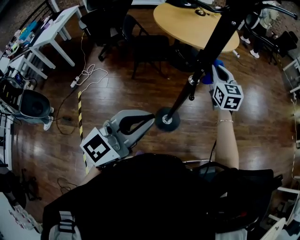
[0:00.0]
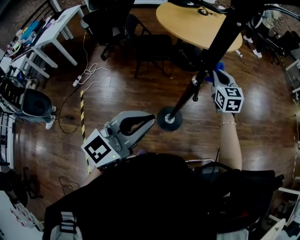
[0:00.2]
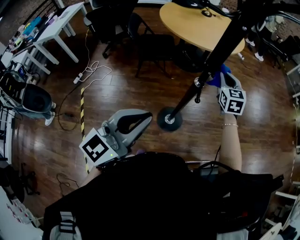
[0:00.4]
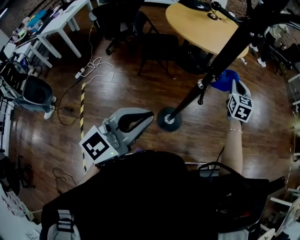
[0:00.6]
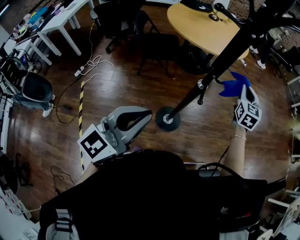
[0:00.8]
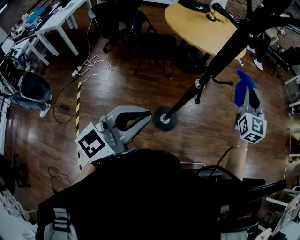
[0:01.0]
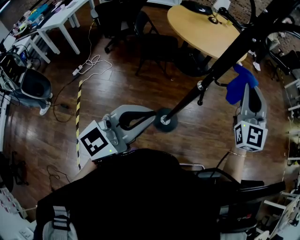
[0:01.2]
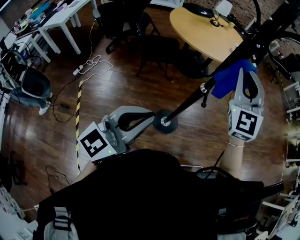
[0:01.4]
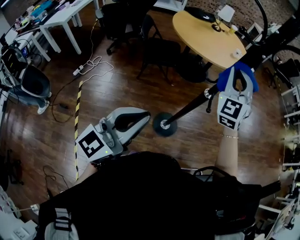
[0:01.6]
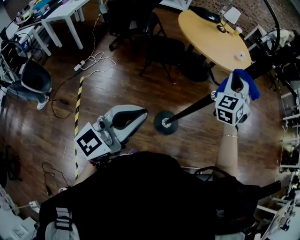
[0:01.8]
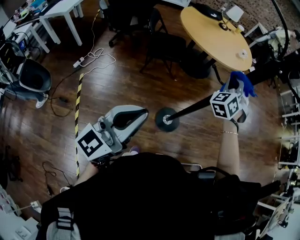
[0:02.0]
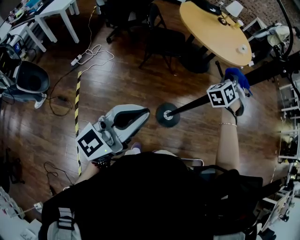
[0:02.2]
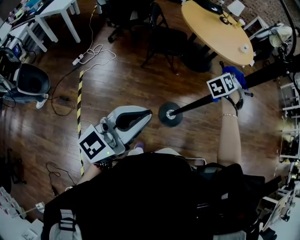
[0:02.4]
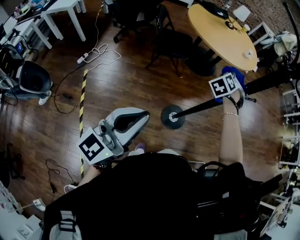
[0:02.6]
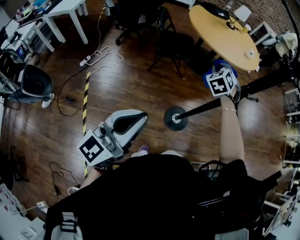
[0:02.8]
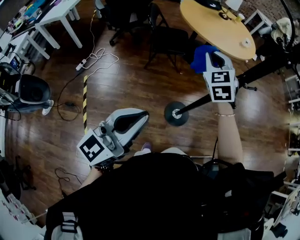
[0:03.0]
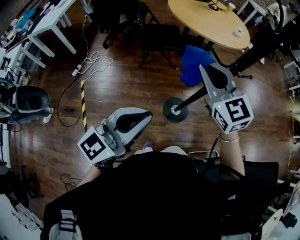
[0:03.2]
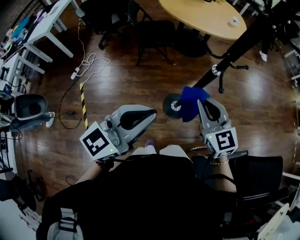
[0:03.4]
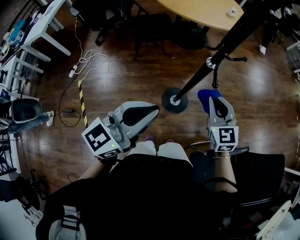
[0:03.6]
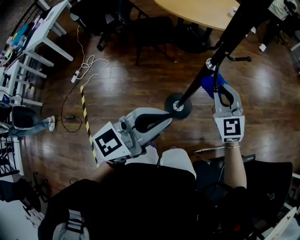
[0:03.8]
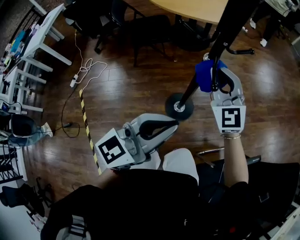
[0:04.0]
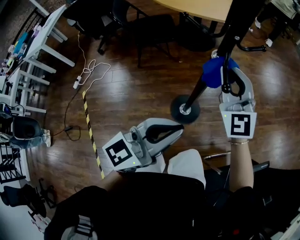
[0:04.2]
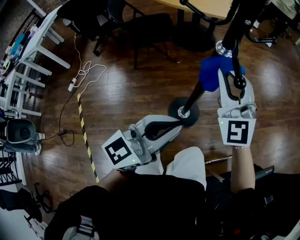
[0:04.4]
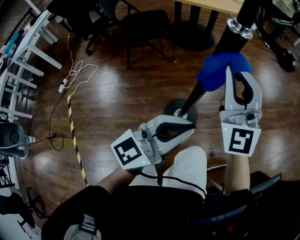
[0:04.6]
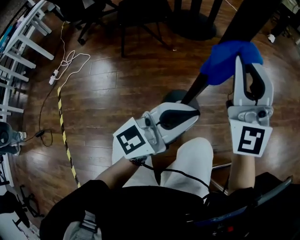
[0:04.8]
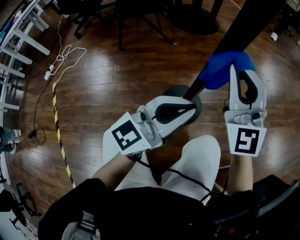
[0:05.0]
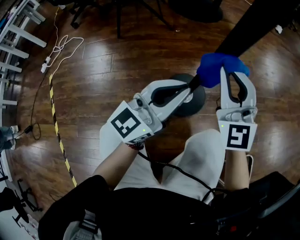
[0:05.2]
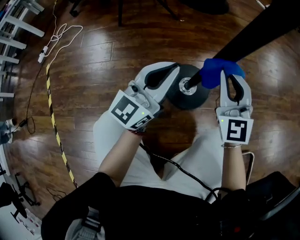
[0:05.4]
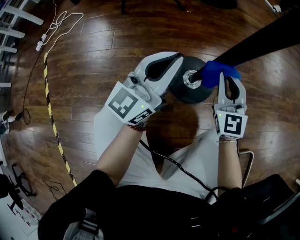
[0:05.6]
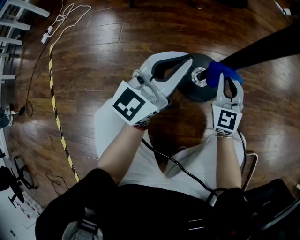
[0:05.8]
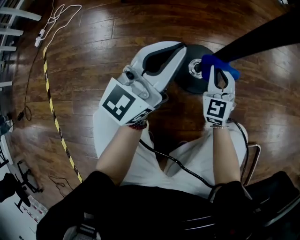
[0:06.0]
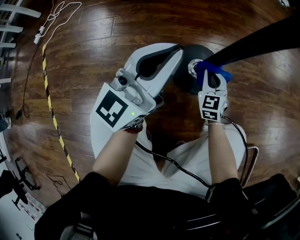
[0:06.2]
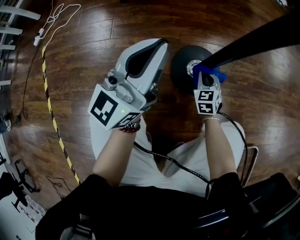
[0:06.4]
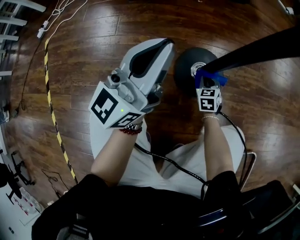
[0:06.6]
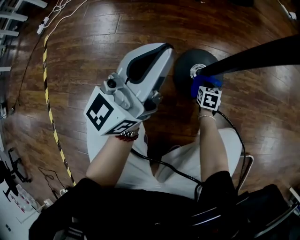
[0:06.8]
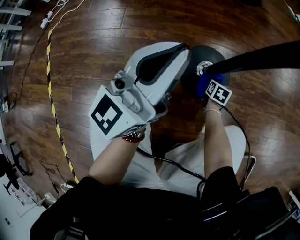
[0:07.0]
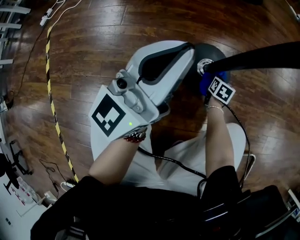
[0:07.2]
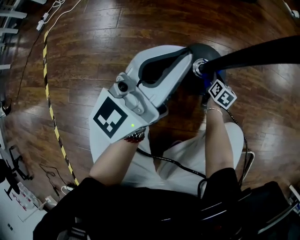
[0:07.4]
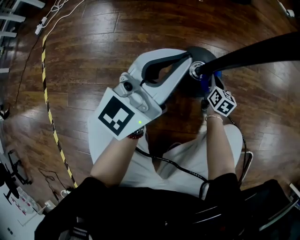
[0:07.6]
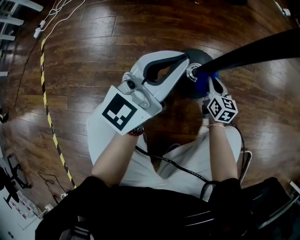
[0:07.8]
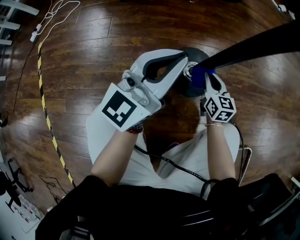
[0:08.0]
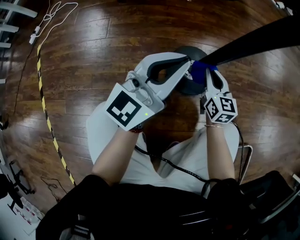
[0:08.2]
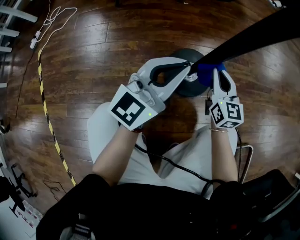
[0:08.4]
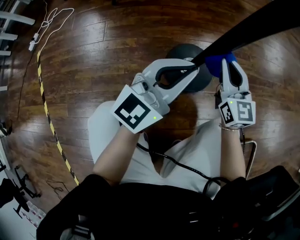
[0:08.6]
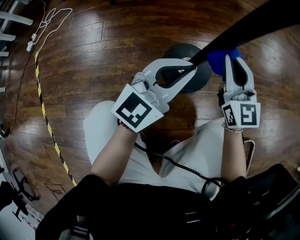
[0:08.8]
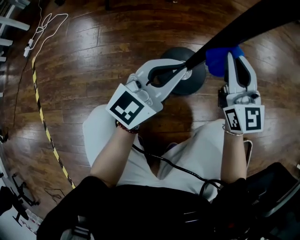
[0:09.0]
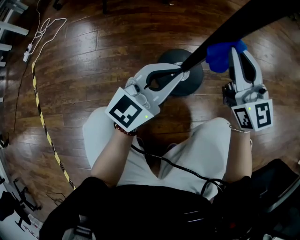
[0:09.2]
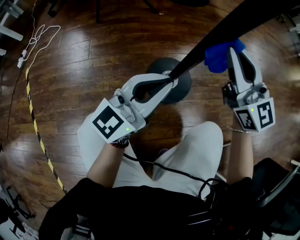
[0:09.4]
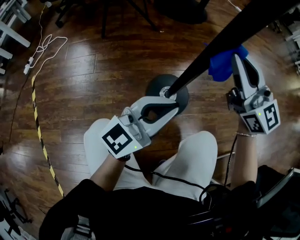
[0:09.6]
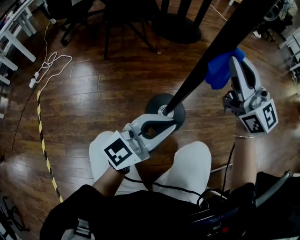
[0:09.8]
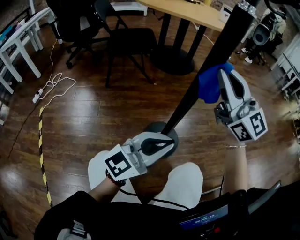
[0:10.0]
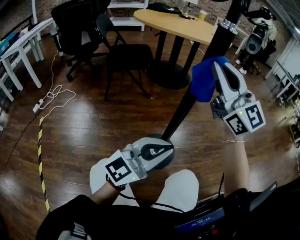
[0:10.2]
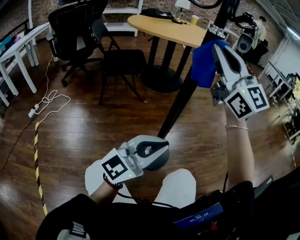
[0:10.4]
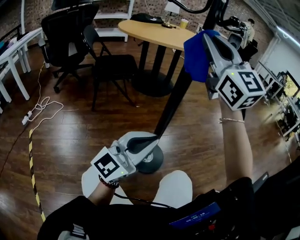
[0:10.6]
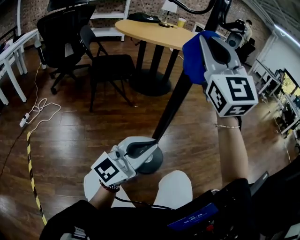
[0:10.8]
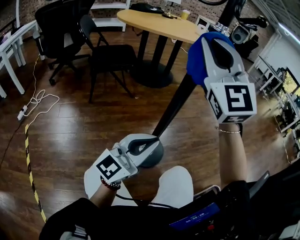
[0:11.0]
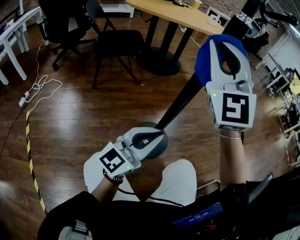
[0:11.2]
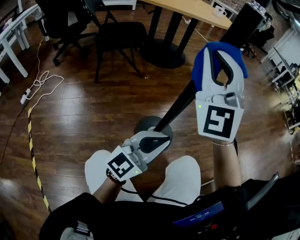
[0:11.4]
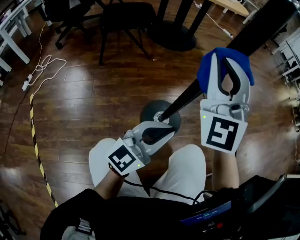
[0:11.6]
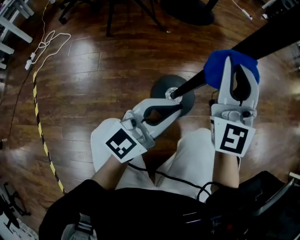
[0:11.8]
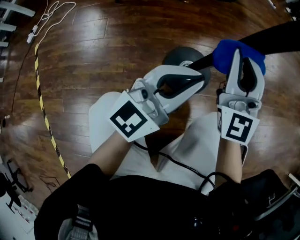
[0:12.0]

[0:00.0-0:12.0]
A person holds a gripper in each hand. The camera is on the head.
0.0 to 1.6 s: The right gripper moves upward, backward and to the left, roughly 15 cm, and swivels some 40 degrees. The left gripper is displaced to the left by some 10 cm.
1.6 to 3.0 s: The left gripper moves to the left, roughly 10 cm. The right gripper shifts approximately 20 cm to the left and downward, and swivels about 30 degrees.
3.0 to 4.4 s: The right gripper is displaced to the right and downward by approximately 25 cm, and changes its angle by about 20 degrees, while the left gripper shifts about 35 cm downward, to the right and forward, and rotates approximately 20 degrees.
4.4 to 6.0 s: The right gripper moves downward, about 60 cm, and changes its angle by approximately 30 degrees, while the left gripper travels downward by roughly 40 cm, and changes its angle by roughly 20 degrees.
6.0 to 7.6 s: The right gripper heads downward, covering approximately 15 cm, and rolls clockwise, seen from behind, by some 50 degrees.
7.6 to 9.0 s: The left gripper moves to the right, roughly 5 cm, while the right gripper moves upward, roughly 35 cm, and angles its fingers upward, by some 40 degrees.
9.0 to 10.4 s: The right gripper moves upward, approximately 50 cm, and swivels approximately 30 degrees. Meanwhile the left gripper heads upward and backward, covering some 25 cm, and swivels approximately 20 degrees.
10.4 to 12.0 s: The left gripper heads downward and forward, covering roughly 20 cm. Meanwhile the right gripper is displaced downward by about 40 cm, and swivels approximately 20 degrees.

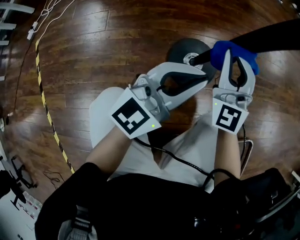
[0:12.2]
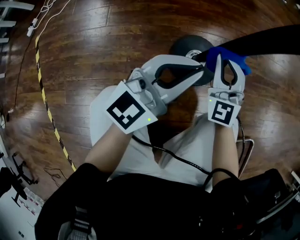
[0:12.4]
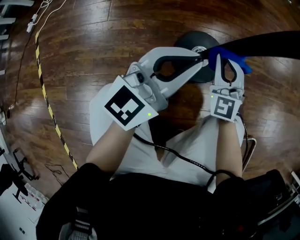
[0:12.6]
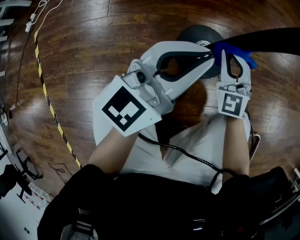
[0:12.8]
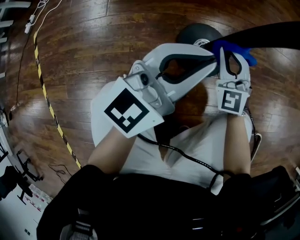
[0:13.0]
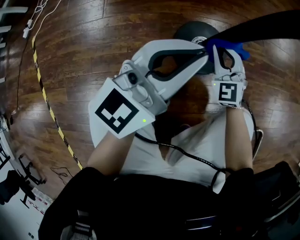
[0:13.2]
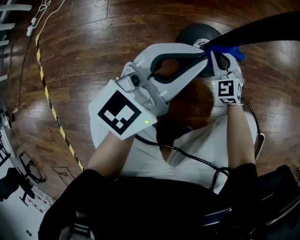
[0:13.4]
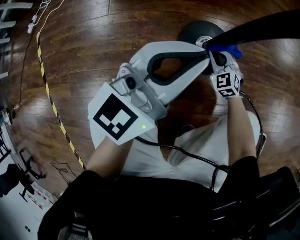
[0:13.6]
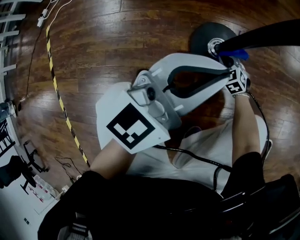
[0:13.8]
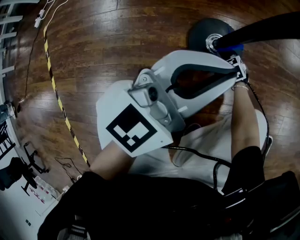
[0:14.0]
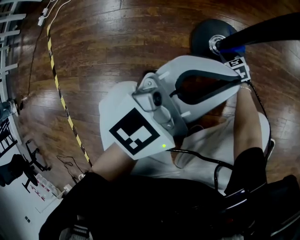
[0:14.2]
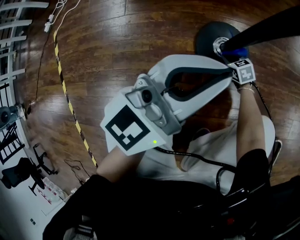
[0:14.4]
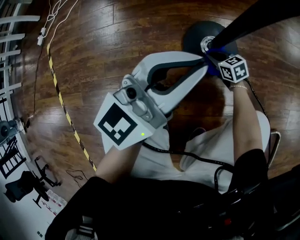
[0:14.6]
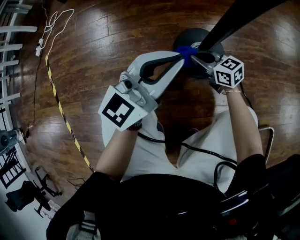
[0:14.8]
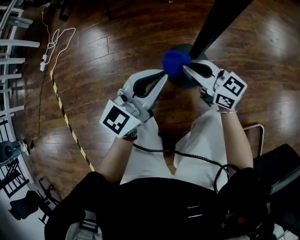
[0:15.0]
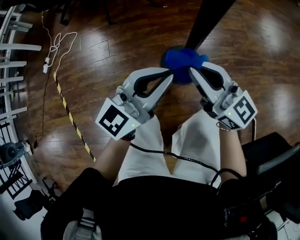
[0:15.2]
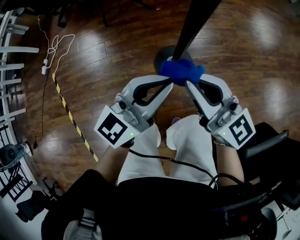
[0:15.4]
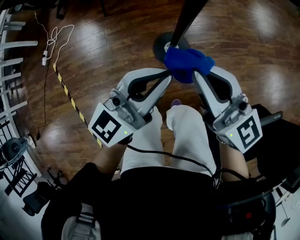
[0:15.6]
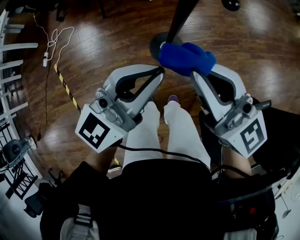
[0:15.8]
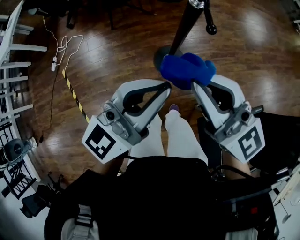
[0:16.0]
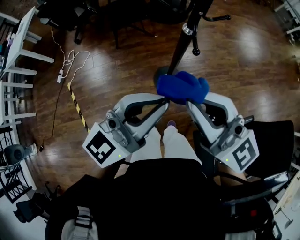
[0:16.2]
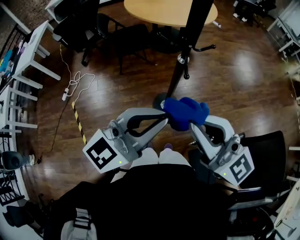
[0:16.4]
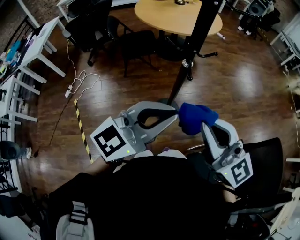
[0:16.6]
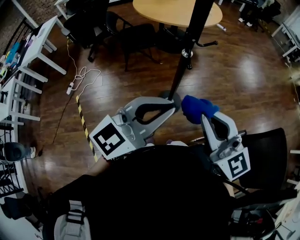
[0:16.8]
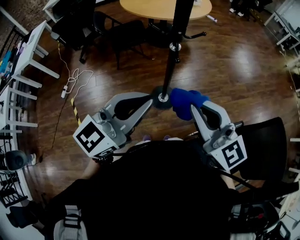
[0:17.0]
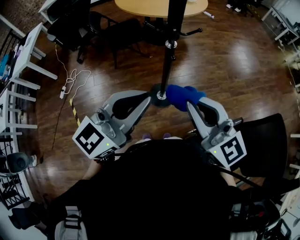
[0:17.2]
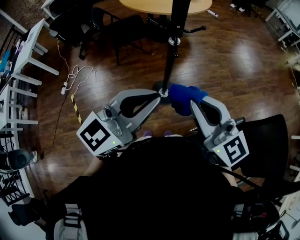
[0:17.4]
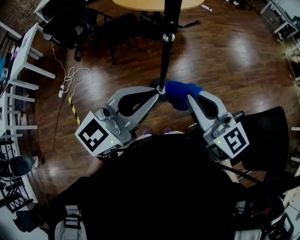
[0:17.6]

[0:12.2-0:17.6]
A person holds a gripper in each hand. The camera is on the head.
12.2 to 13.6 s: The right gripper moves downward, roughly 30 cm, and angles its fingers downward, by about 40 degrees.
13.6 to 15.0 s: The left gripper travels upward by roughly 5 cm. Meanwhile the right gripper goes some 30 cm upward, and angles its fingers upward, by about 30 degrees.
15.0 to 16.2 s: Both grippers move upward, some 50 cm. The right gripper changes its angle by roughly 30 degrees.
16.2 to 17.6 s: The right gripper heads to the right, upward and backward, covering roughly 10 cm; the left gripper goes approximately 15 cm upward and backward.

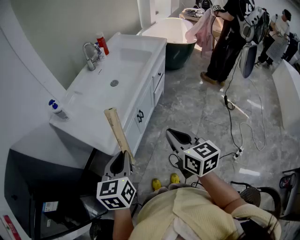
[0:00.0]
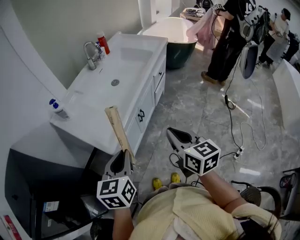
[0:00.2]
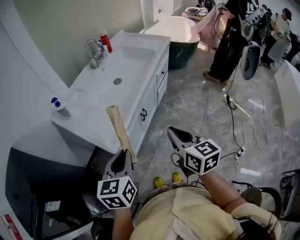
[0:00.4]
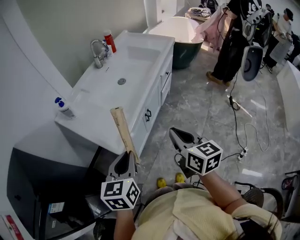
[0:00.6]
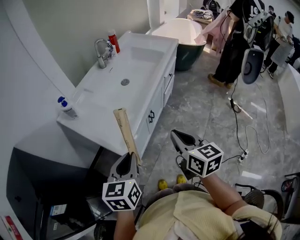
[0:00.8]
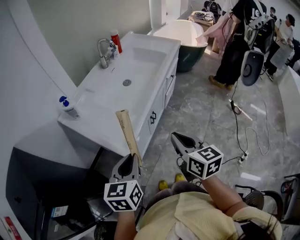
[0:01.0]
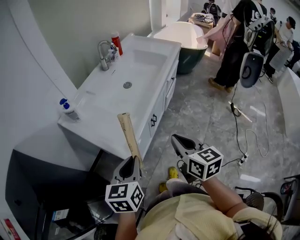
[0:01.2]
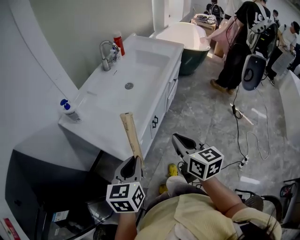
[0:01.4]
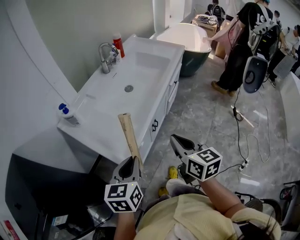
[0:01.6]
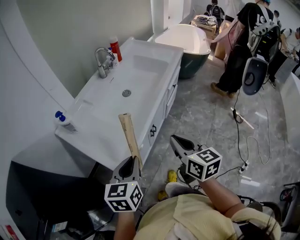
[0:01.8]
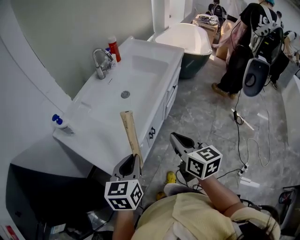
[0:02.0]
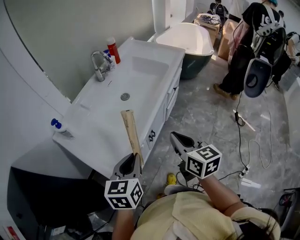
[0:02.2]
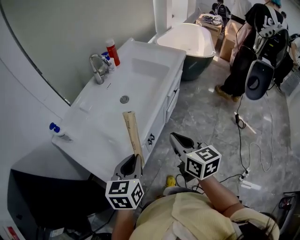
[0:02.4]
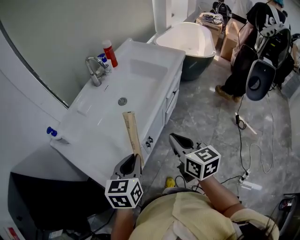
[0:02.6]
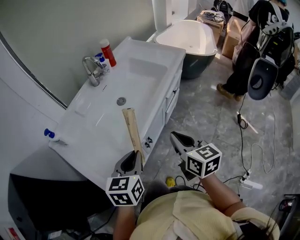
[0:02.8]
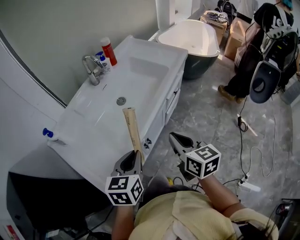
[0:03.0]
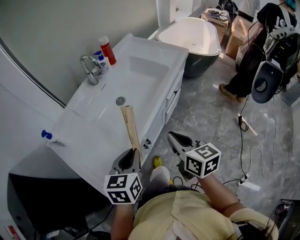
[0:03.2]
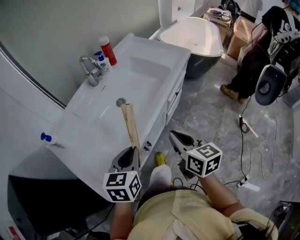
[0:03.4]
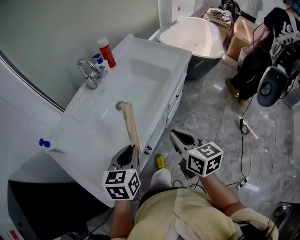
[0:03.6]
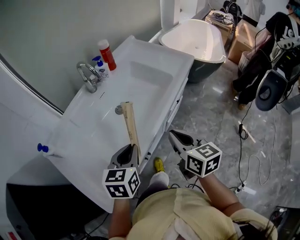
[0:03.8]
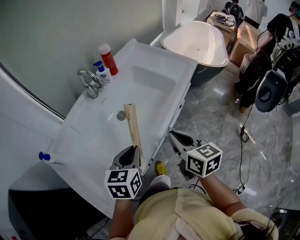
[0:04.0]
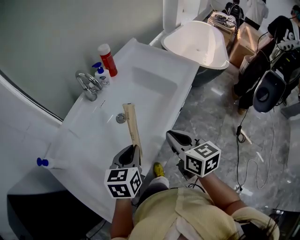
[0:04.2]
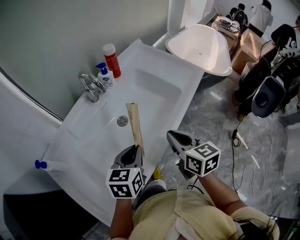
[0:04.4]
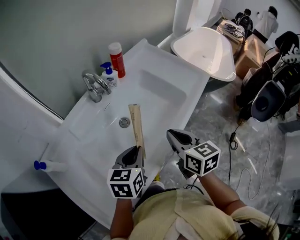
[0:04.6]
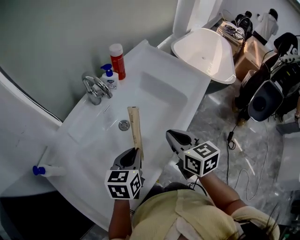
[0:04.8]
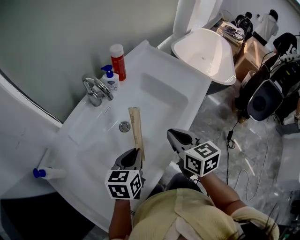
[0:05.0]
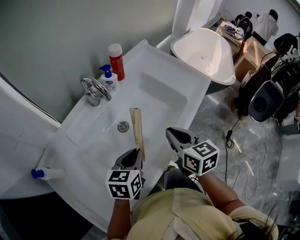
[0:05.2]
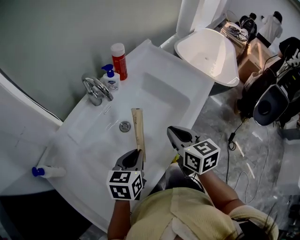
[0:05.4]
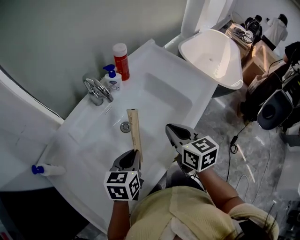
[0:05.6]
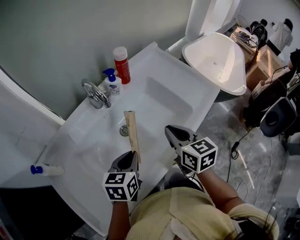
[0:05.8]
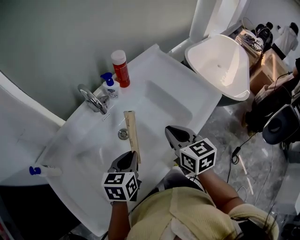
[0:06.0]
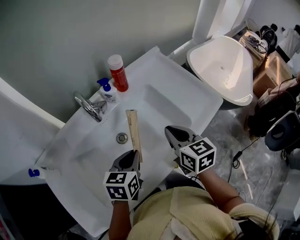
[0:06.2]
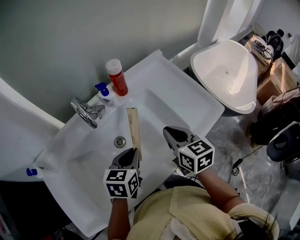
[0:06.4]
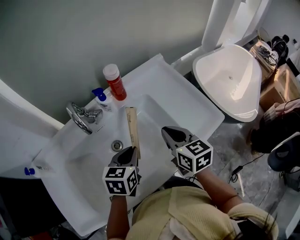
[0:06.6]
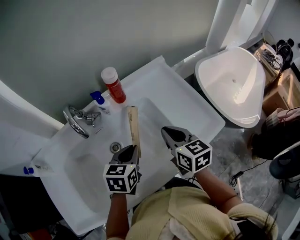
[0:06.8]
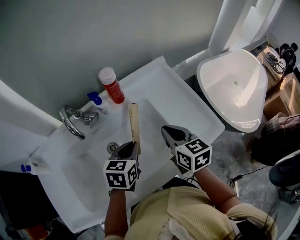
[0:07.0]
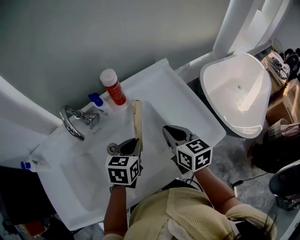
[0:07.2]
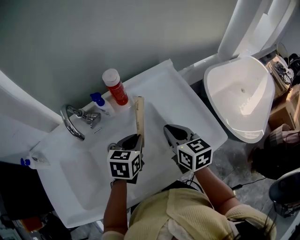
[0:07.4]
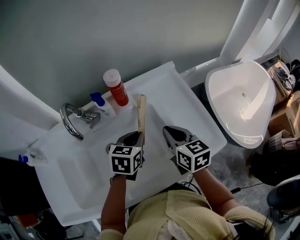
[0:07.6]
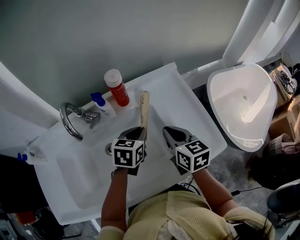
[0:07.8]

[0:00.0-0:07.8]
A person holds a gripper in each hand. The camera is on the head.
0.0 to 1.6 s: The right gripper moves forward and to the left, about 10 cm. The left gripper shifts some 5 cm forward.
1.6 to 3.2 s: Both grippers move forward and to the right, roughly 20 cm.
3.2 to 4.6 s: The grippers both shift forward by roughly 20 cm.
4.6 to 6.2 s: The grippers both shift forward by roughly 10 cm.
6.2 to 7.8 s: The two grippers go approximately 20 cm forward and to the right.
